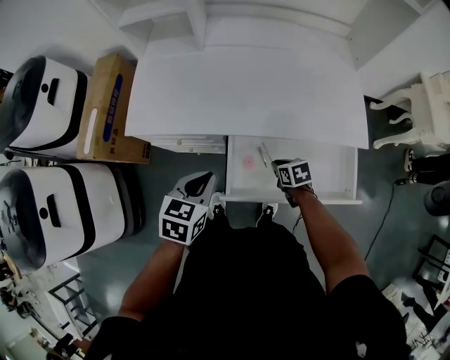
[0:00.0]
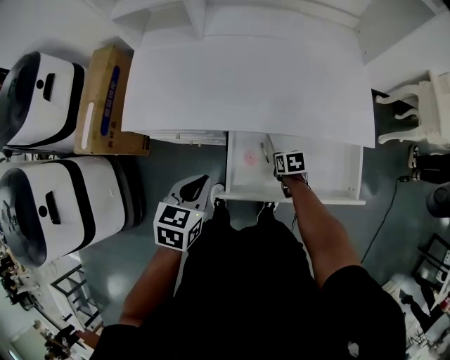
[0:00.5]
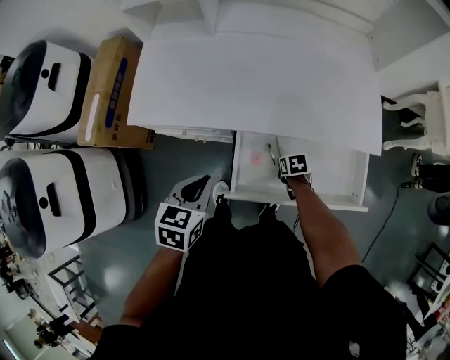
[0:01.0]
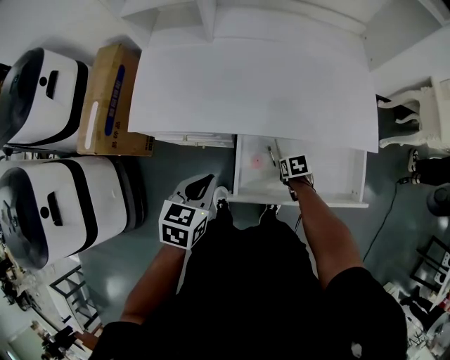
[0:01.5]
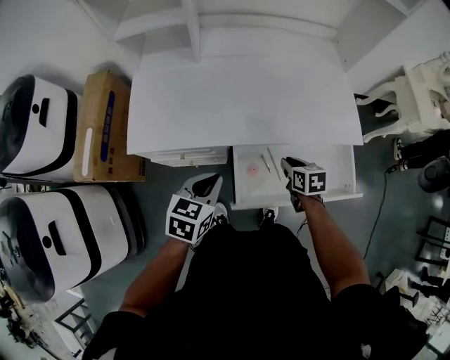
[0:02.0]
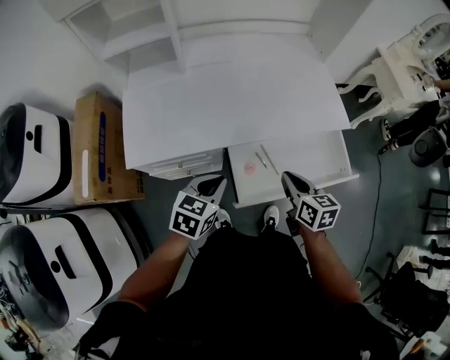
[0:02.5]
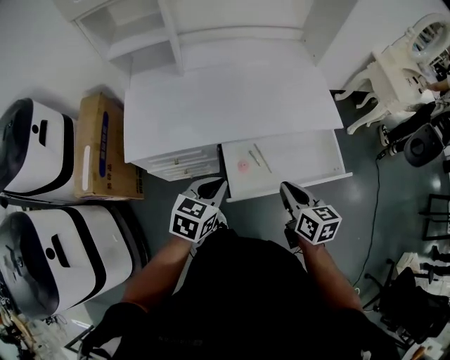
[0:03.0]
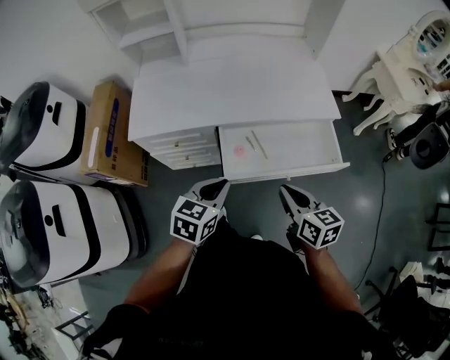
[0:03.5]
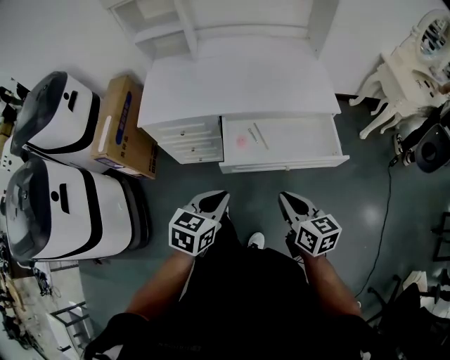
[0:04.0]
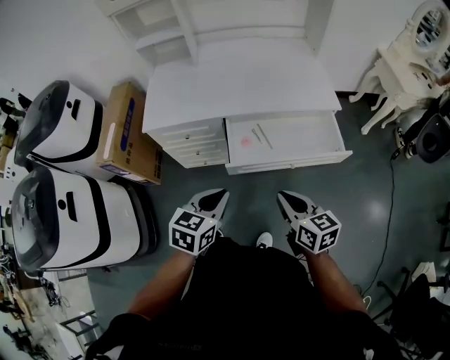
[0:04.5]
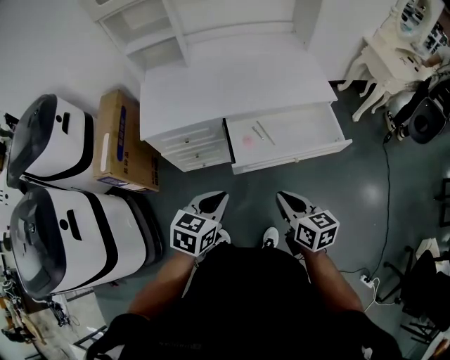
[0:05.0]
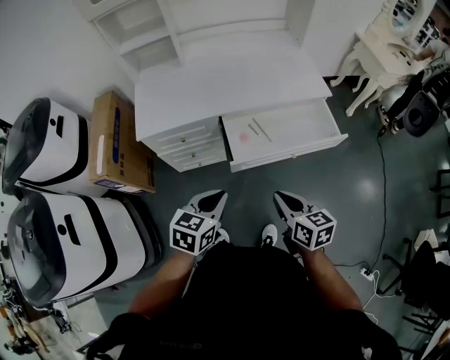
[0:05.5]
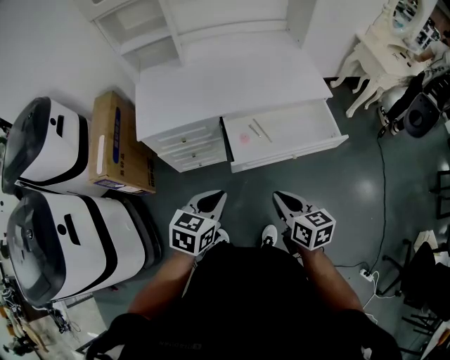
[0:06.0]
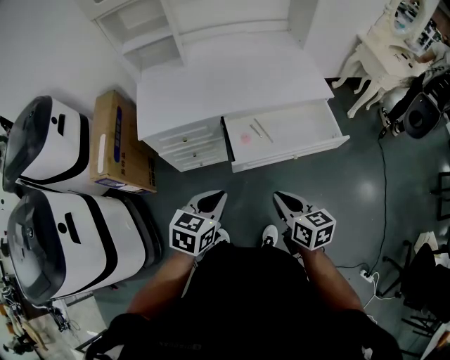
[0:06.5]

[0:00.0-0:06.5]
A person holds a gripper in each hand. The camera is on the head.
0:00.0 to 0:02.0: The right gripper travels upward by about 10 cm.
0:02.0 to 0:04.5: The right gripper moves backward and upward, roughly 35 cm, and swivels approximately 30 degrees. Meanwhile the left gripper travels backward and to the right by about 25 cm.
0:04.5 to 0:06.5: Both grippers move to the left, about 5 cm.

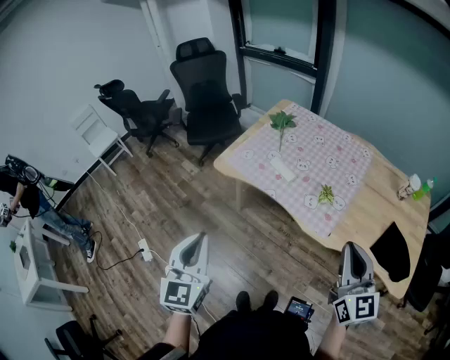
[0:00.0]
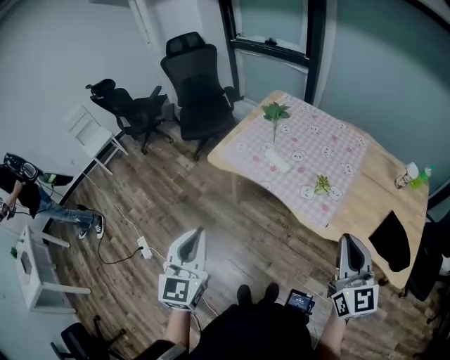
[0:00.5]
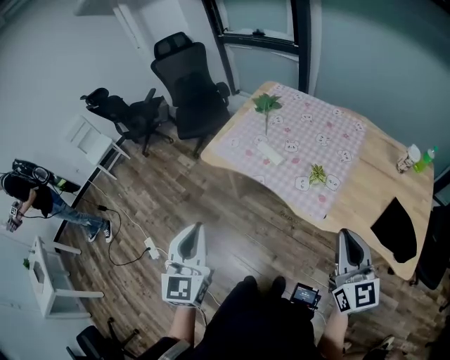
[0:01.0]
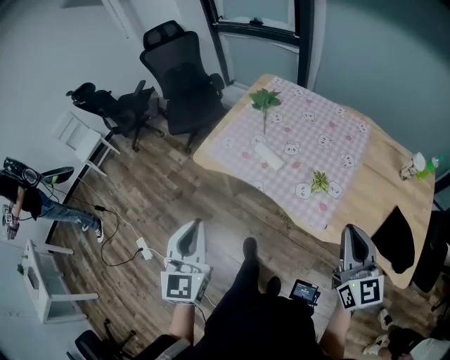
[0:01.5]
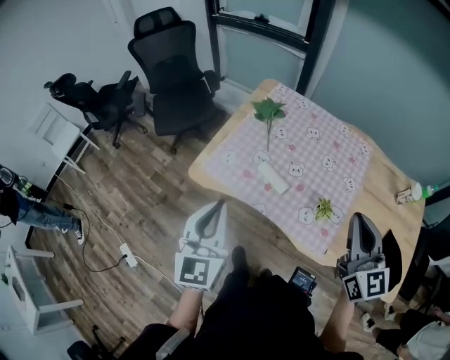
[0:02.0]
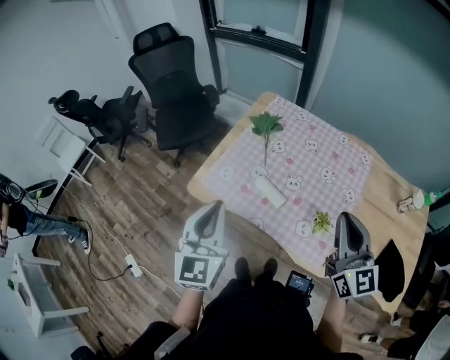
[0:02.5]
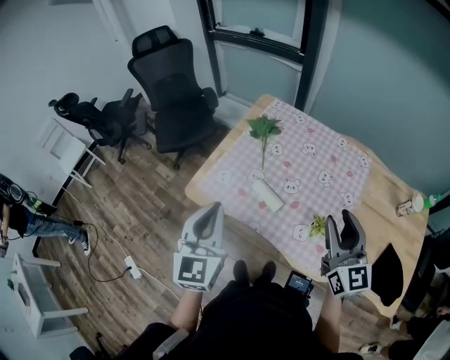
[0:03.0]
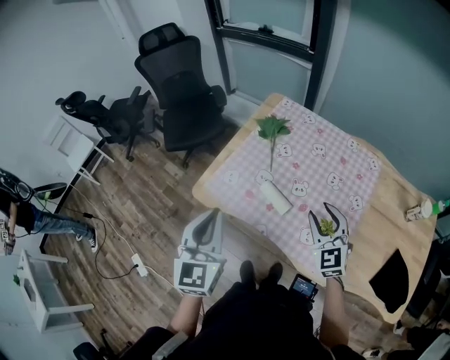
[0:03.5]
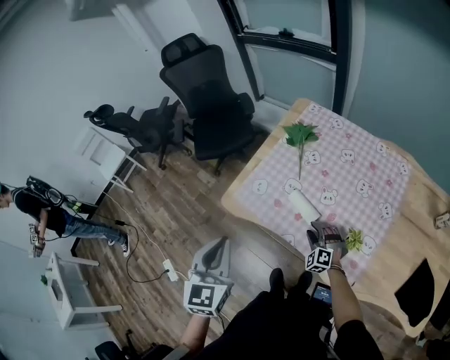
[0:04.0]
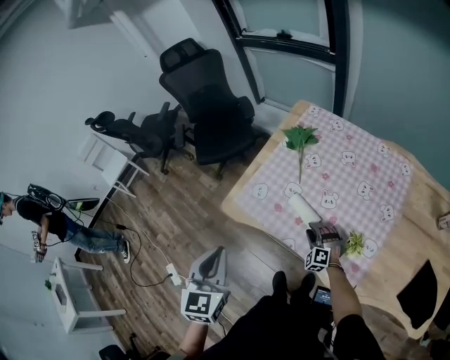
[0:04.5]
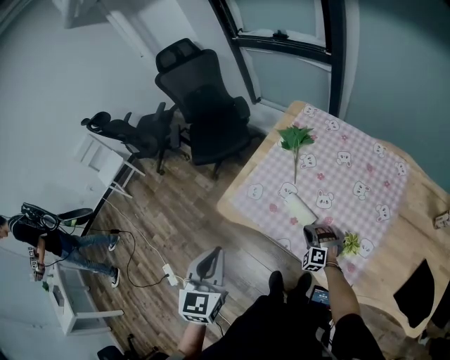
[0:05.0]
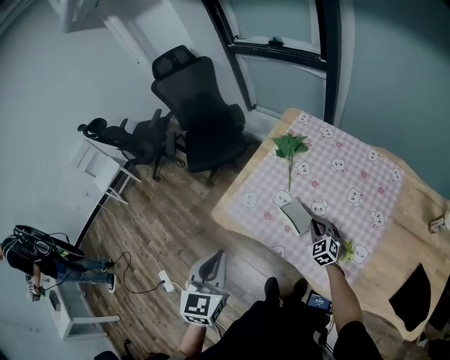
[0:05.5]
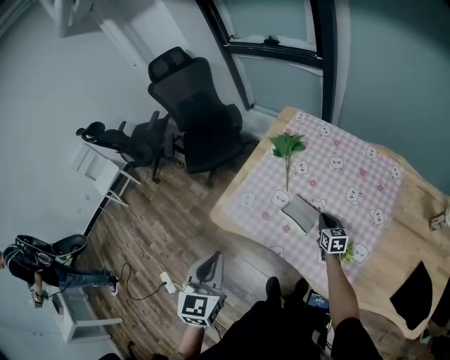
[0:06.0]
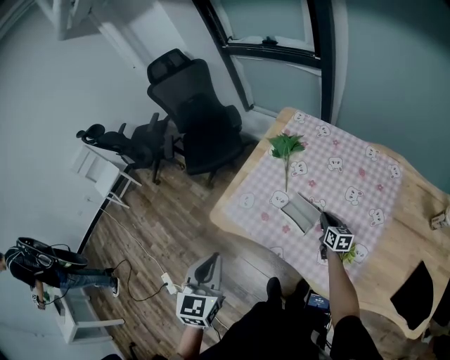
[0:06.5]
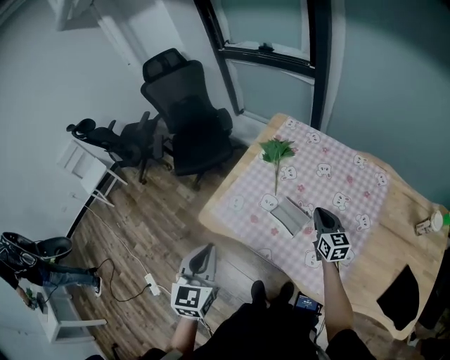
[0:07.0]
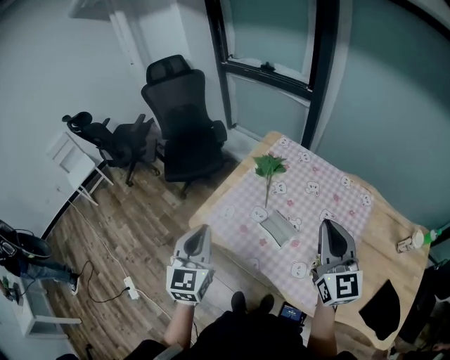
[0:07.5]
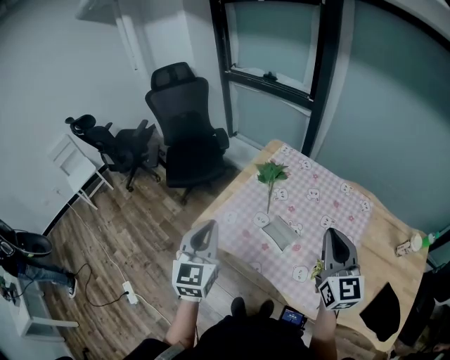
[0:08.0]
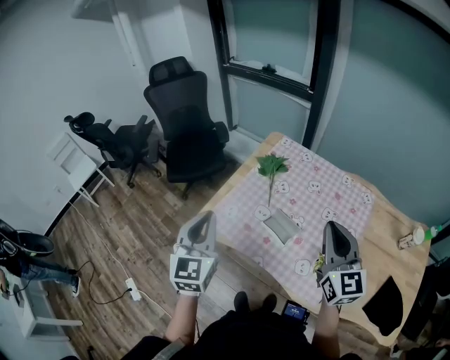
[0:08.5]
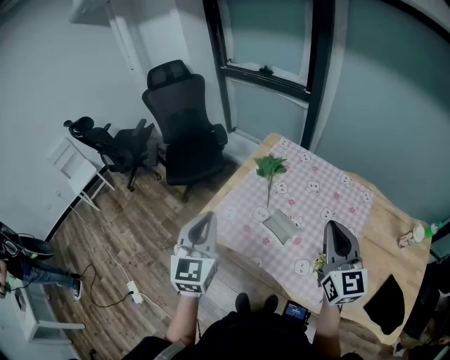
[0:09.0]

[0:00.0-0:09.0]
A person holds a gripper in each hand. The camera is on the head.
0:00.0 to 0:02.0: The grippers both shift forward by approximately 30 cm.
0:02.0 to 0:04.5: The left gripper rotates about 20 degrees. The right gripper moves downward, some 40 cm, rotates around the line of its fingers by about 60 degrees, counterclockwise from behind, and opens.
0:04.5 to 0:07.0: The left gripper ends up approximately 5 cm from where it was; the right gripper goes some 20 cm upward and to the right, rolls clockwise, seen from behind, by roughly 70 degrees, and closes.
0:07.0 to 0:09.0: The left gripper is displaced upward and forward by about 10 cm; the right gripper heads upward and backward, covering approximately 30 cm, and changes its angle by about 20 degrees.

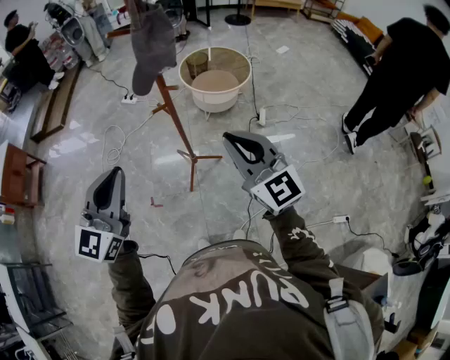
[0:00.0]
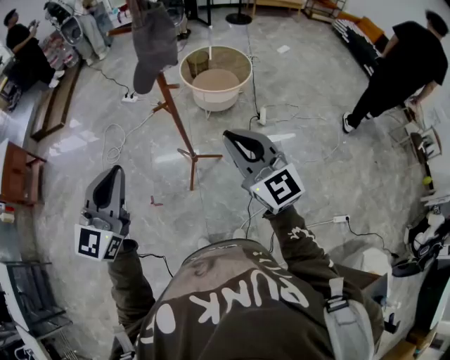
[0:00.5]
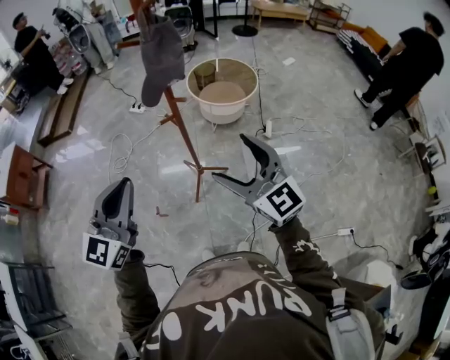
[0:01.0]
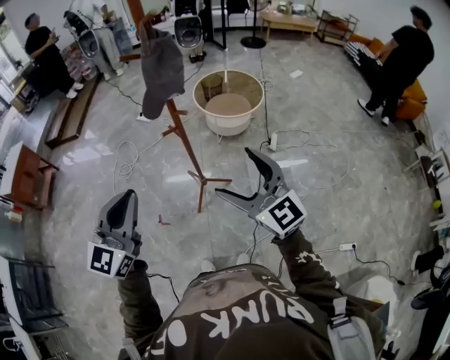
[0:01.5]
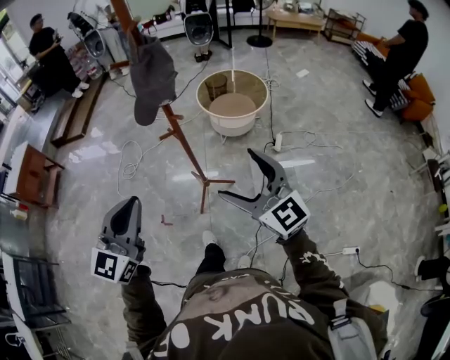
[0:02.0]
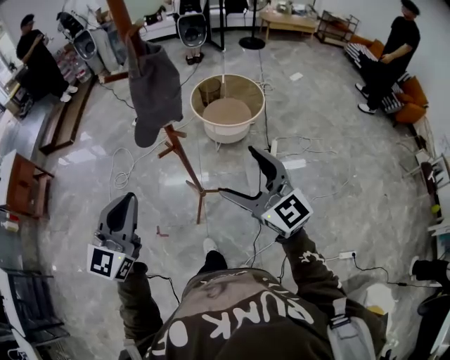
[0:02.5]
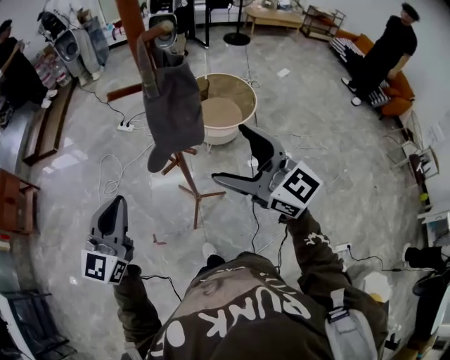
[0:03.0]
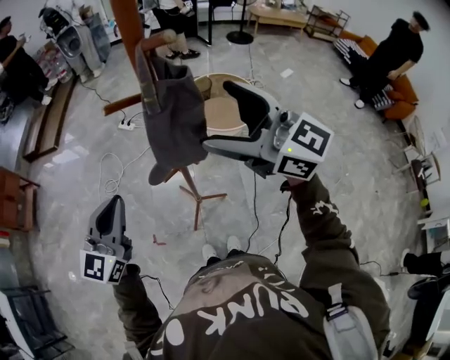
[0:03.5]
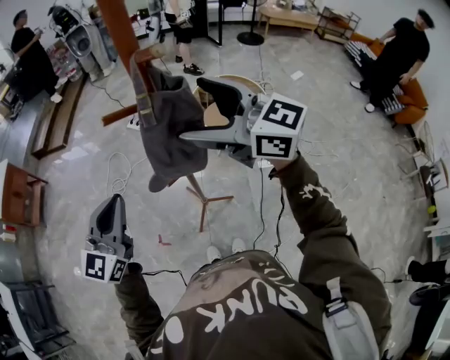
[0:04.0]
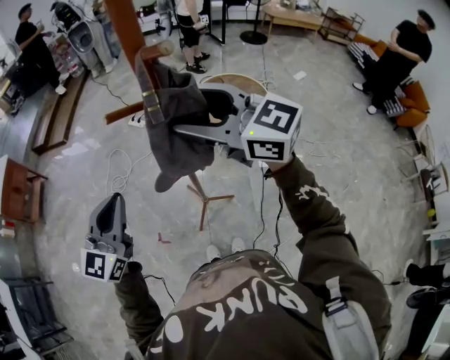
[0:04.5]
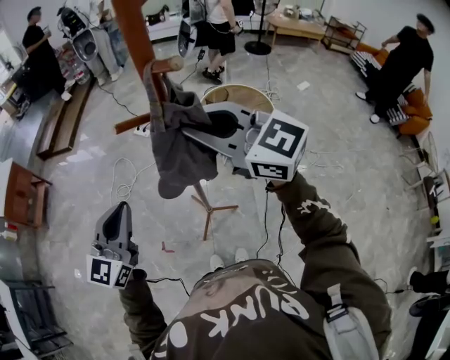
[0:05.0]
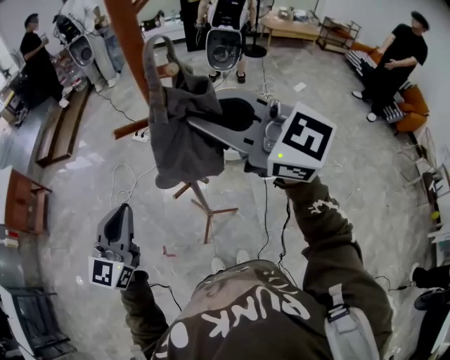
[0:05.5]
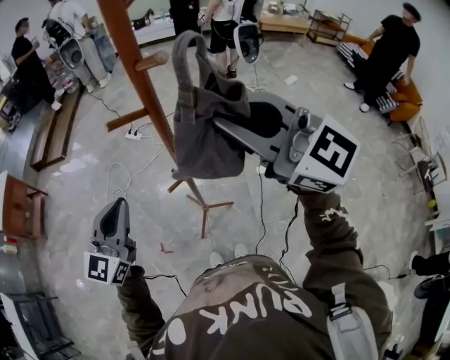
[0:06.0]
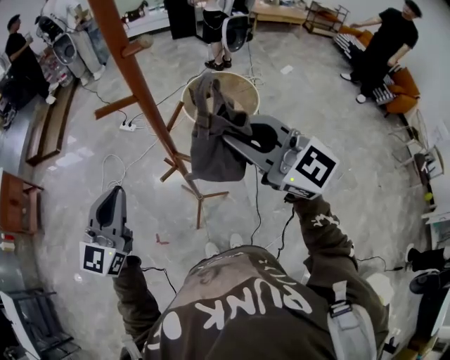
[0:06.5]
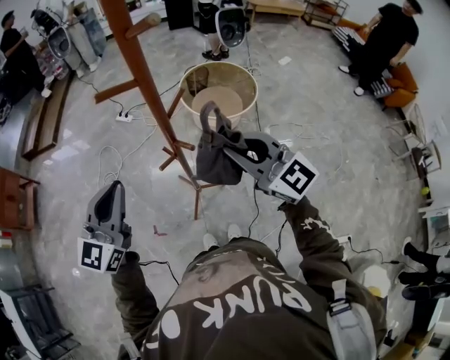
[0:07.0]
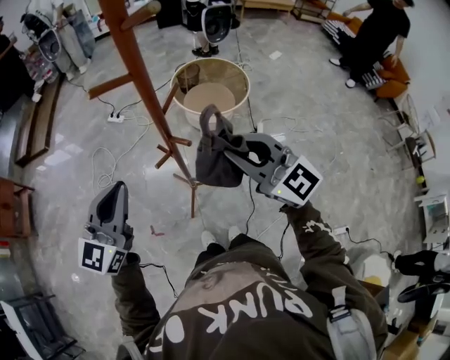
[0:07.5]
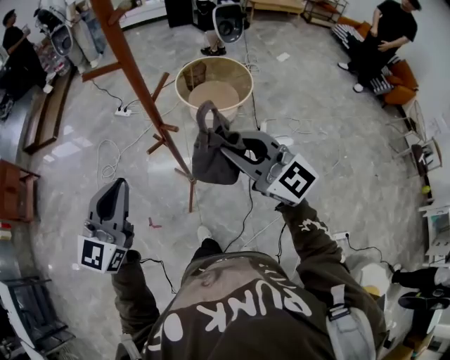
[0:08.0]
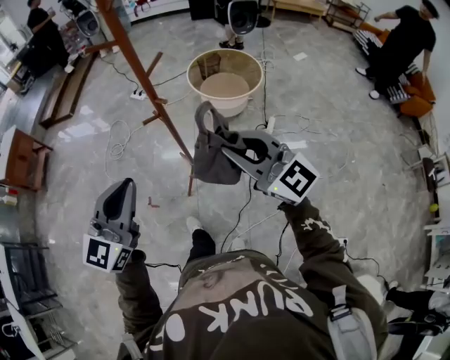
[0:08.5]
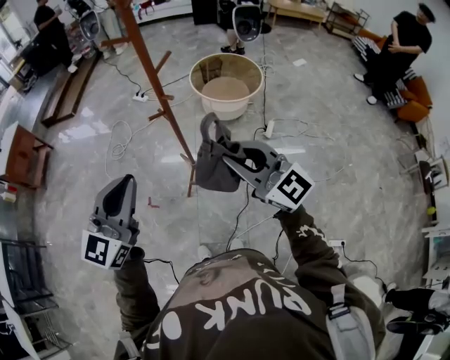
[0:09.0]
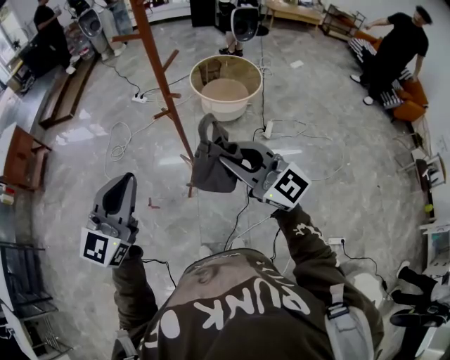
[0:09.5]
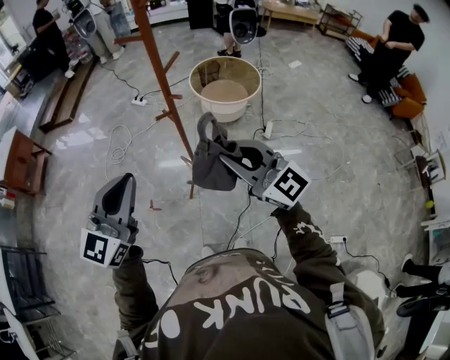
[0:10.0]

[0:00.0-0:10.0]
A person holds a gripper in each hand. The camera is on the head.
0:00.0 to 0:02.0: The right gripper moves roughly 5 cm, and opens, while the left gripper moves to the right, roughly 5 cm.
0:02.0 to 0:04.0: The left gripper shifts roughly 25 cm forward. The right gripper goes roughly 35 cm forward and upward, and turns by some 30 degrees.
0:04.0 to 0:06.0: The right gripper is displaced backward and upward by roughly 10 cm, and closes.
0:06.0 to 0:08.0: The right gripper is displaced downward and backward by approximately 20 cm. Meanwhile the left gripper goes approximately 10 cm backward and to the right.
0:08.0 to 0:10.0: The grippers both shift backward by roughly 15 cm.

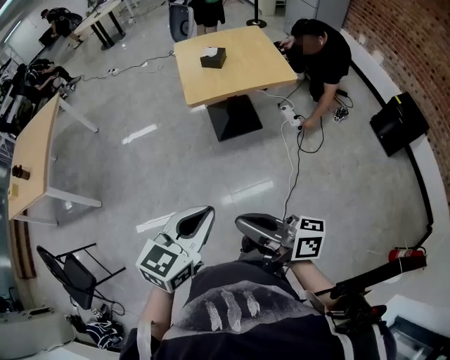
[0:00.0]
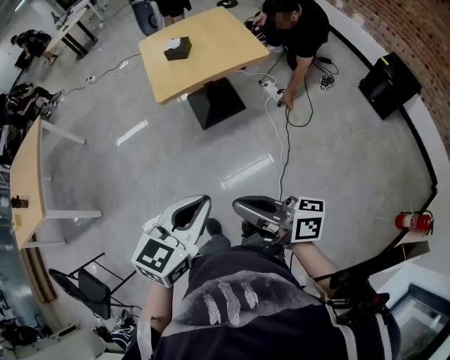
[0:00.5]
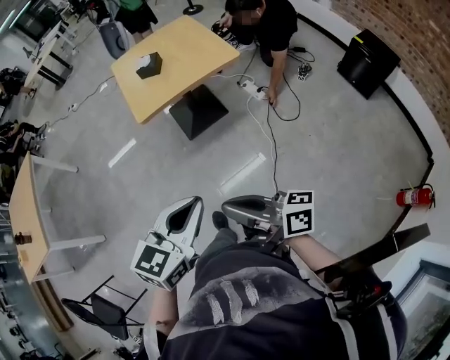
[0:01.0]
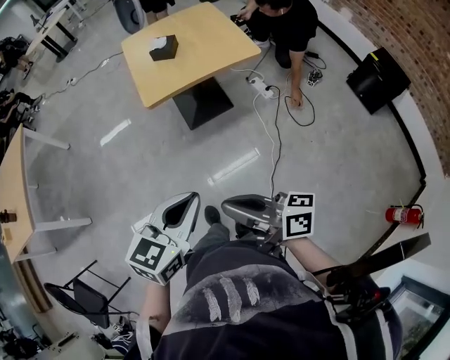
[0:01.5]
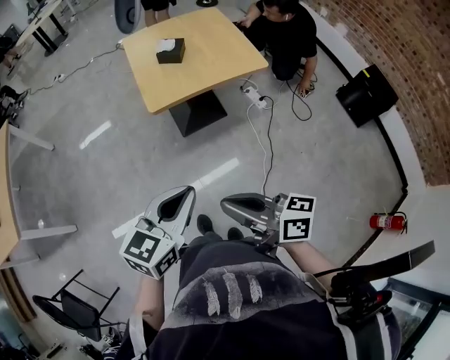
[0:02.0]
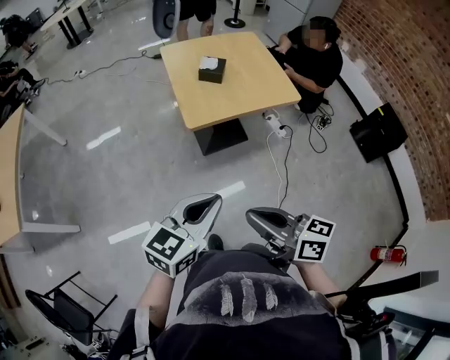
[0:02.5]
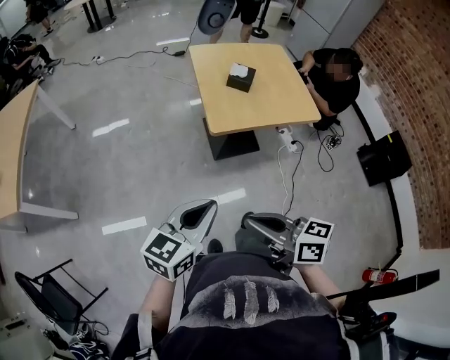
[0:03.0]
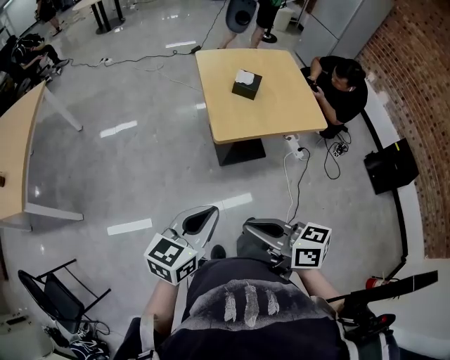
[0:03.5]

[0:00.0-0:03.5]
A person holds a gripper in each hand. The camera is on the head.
0:00.0 to 0:02.0: The two grippers go about 15 cm forward.
0:02.0 to 0:03.5: The grippers both shift to the left and forward by approximately 15 cm.
